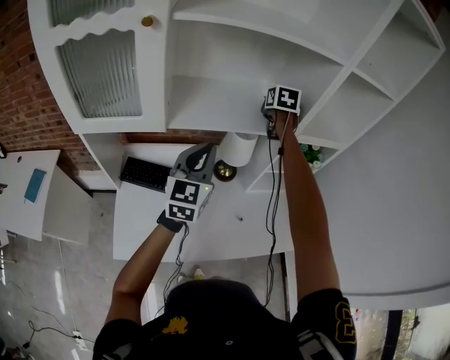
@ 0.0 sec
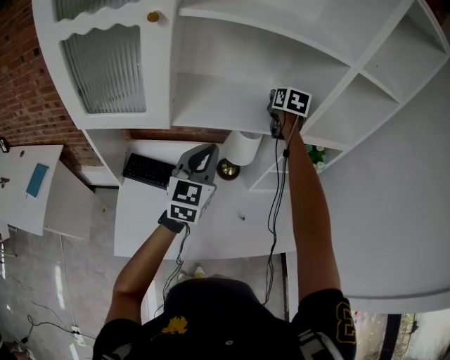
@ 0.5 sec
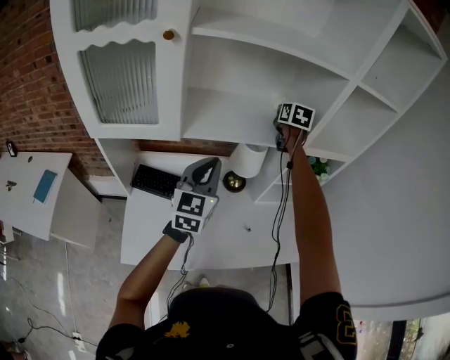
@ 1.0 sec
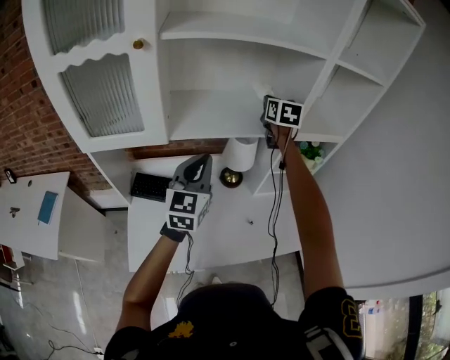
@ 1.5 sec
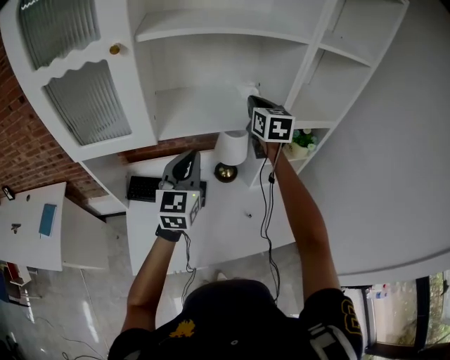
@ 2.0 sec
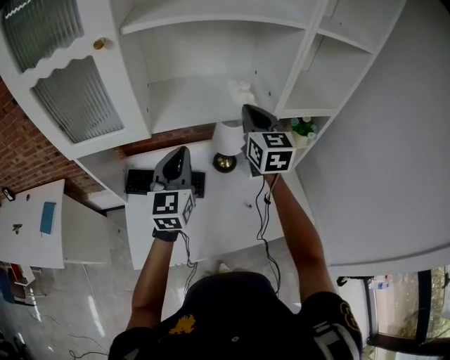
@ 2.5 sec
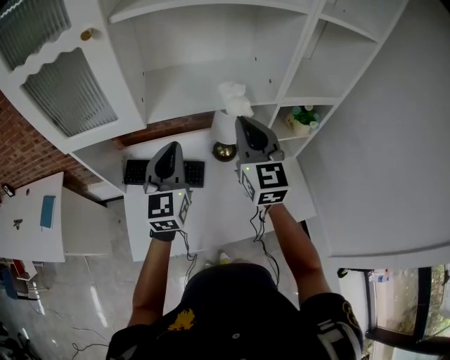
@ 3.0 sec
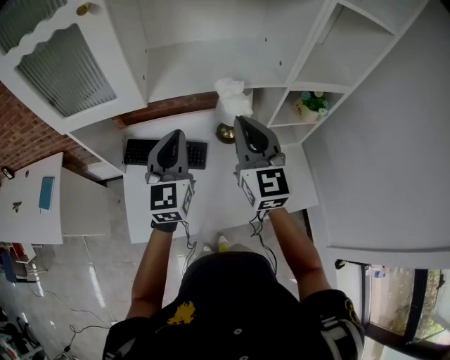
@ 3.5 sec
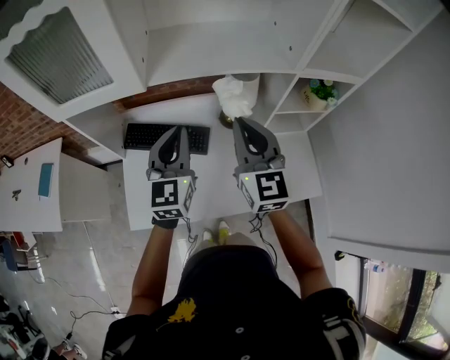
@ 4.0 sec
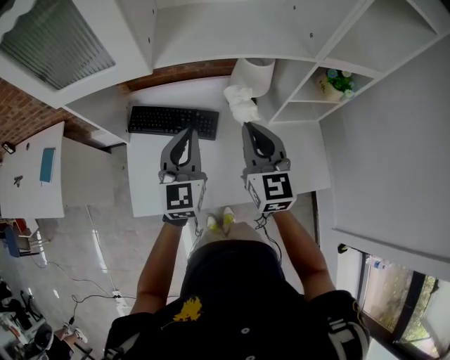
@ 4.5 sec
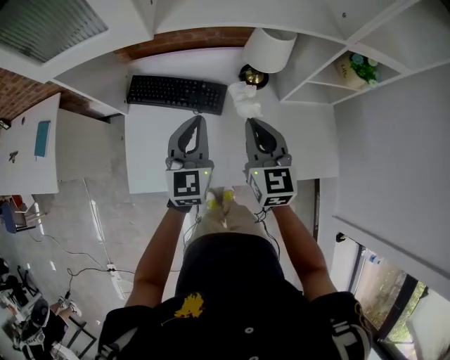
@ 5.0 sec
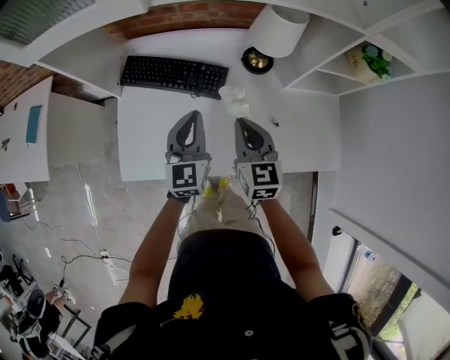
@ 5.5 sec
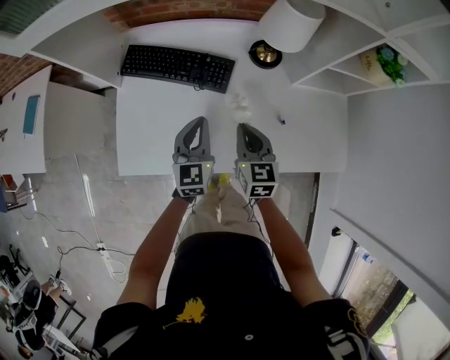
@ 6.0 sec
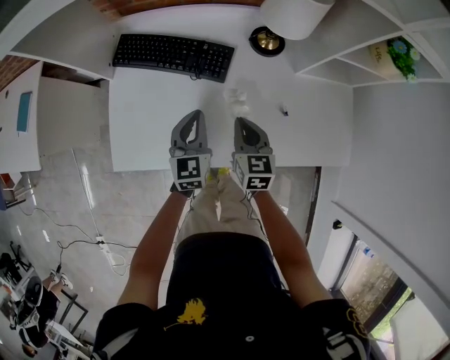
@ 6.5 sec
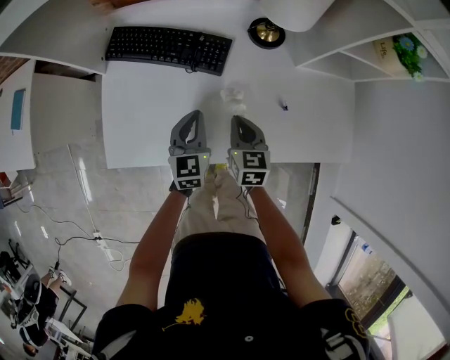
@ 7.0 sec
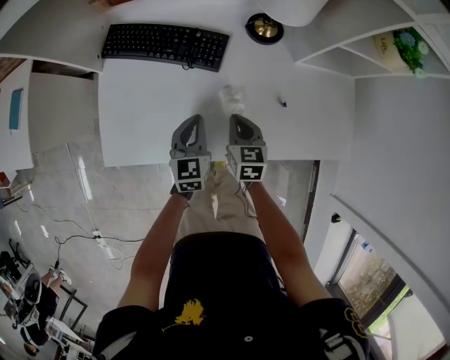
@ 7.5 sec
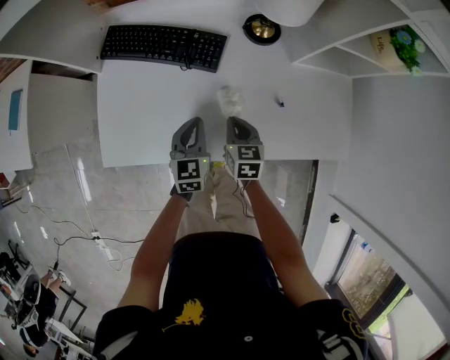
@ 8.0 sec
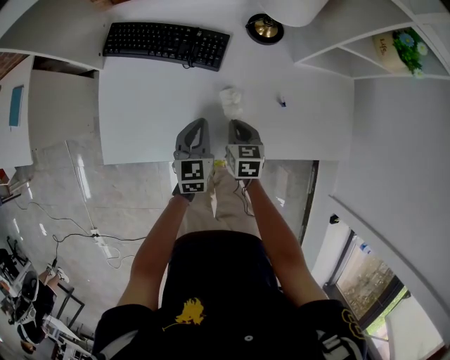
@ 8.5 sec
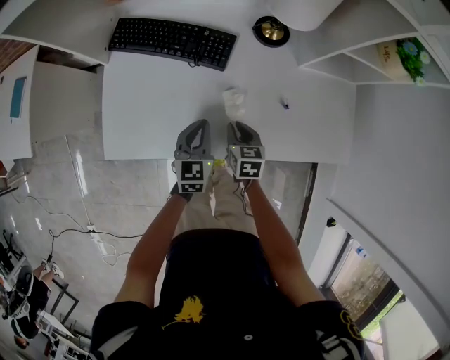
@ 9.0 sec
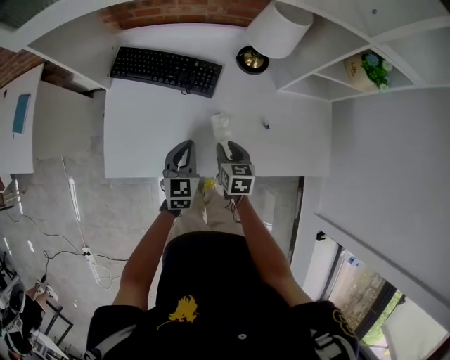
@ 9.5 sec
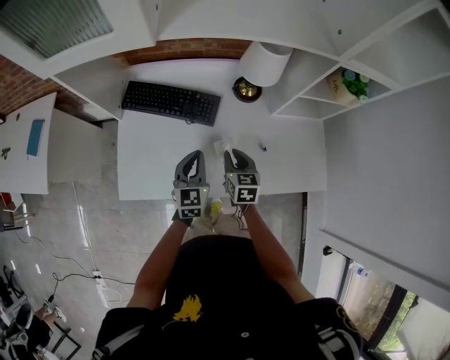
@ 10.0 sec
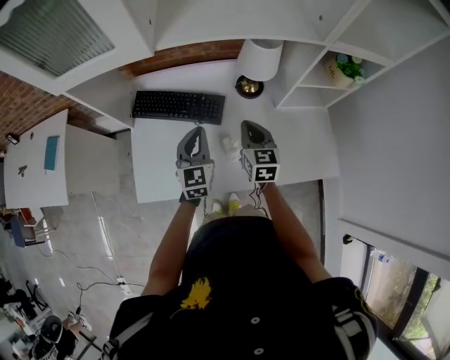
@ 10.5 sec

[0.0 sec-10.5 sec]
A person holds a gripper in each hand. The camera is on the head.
0.0 sec to 2.0 sec: The right gripper travels backward by some 10 cm, and turns by roughly 20 degrees.
2.0 sec to 4.0 sec: The left gripper travels downward by approximately 5 cm. Meanwhile the right gripper heads backward and downward, covering roughly 20 cm.
4.0 sec to 6.5 sec: The grippers both shift downward by approximately 35 cm. The right gripper angles its fingers downward, by some 30 degrees.
6.5 sec to 8.5 sec: The left gripper is displaced downward by roughly 5 cm, while the right gripper is displaced downward by approximately 10 cm.
8.5 sec to 10.5 sec: The grippers both shift upward by approximately 20 cm. The right gripper swivels approximately 20 degrees, and opens, then closes once more.

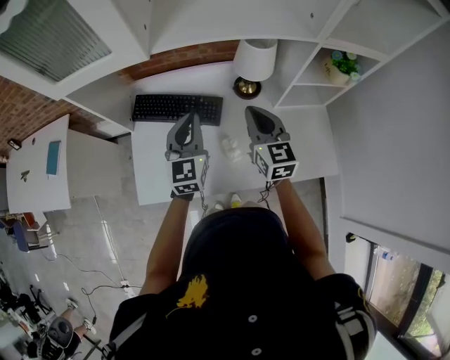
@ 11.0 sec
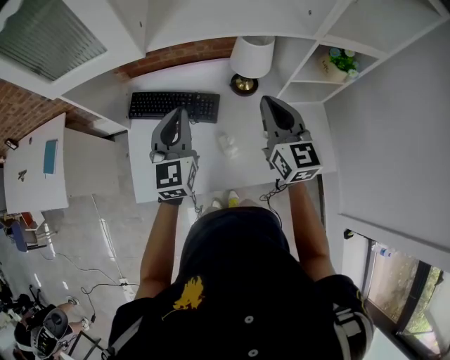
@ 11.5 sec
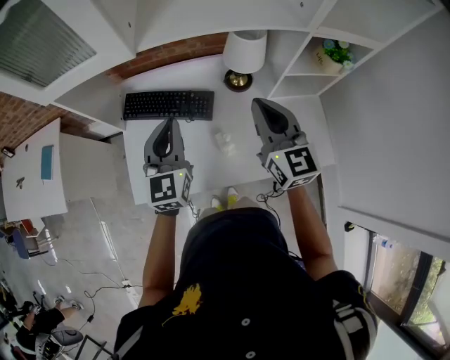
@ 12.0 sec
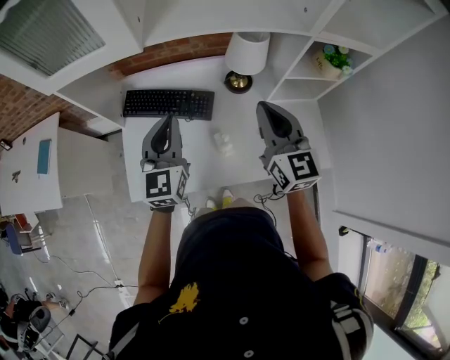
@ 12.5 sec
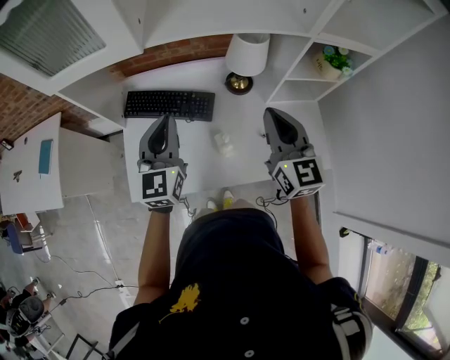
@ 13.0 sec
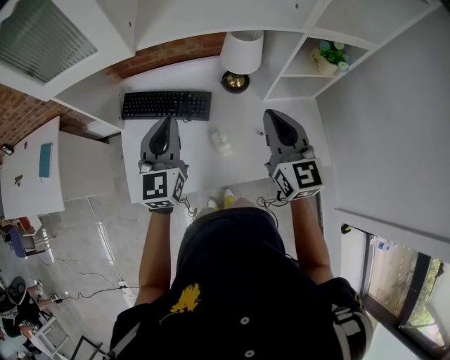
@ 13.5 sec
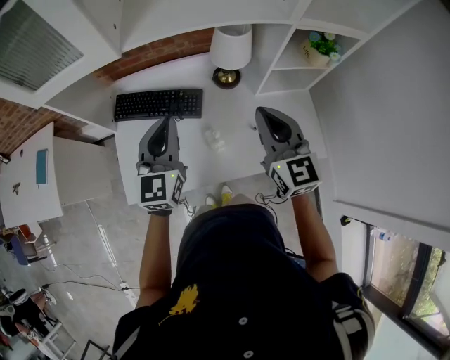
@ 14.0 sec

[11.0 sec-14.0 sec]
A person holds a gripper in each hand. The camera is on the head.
11.0 sec to 12.5 sec: The right gripper travels upward by some 10 cm; the left gripper moves some 5 cm.
12.5 sec to 14.0 sec: The grippers make only small movements.

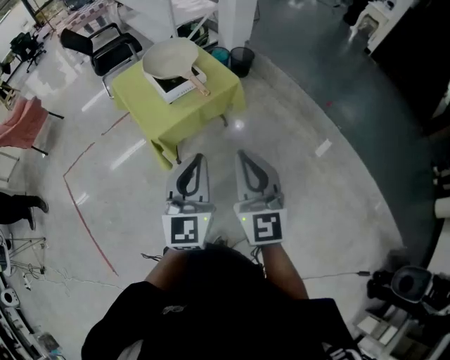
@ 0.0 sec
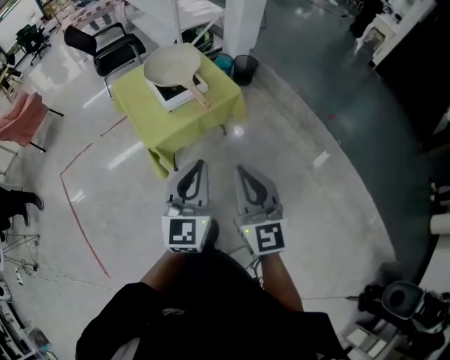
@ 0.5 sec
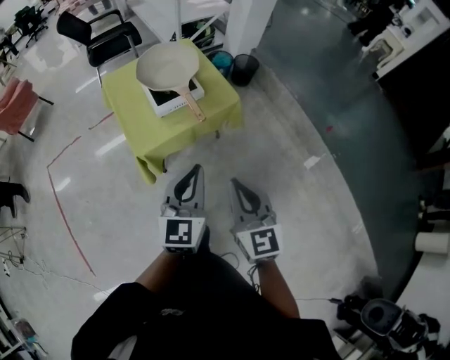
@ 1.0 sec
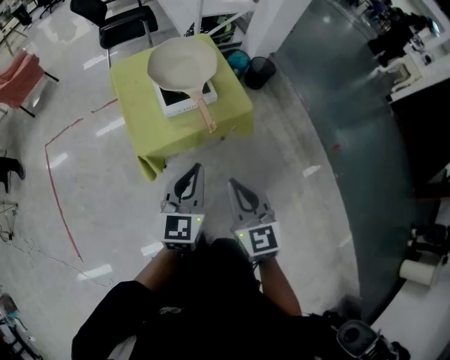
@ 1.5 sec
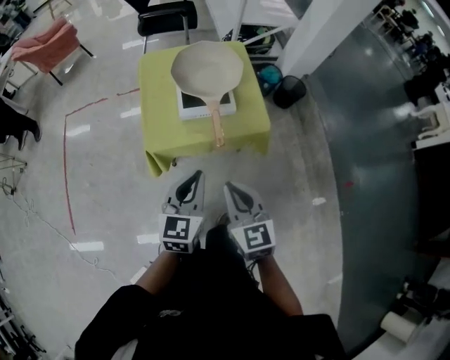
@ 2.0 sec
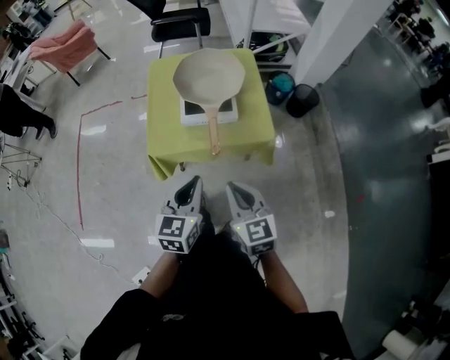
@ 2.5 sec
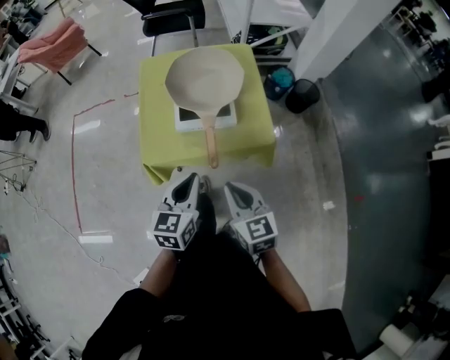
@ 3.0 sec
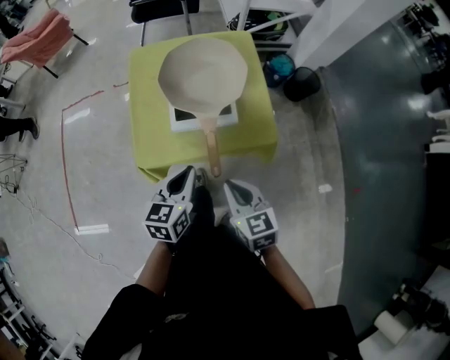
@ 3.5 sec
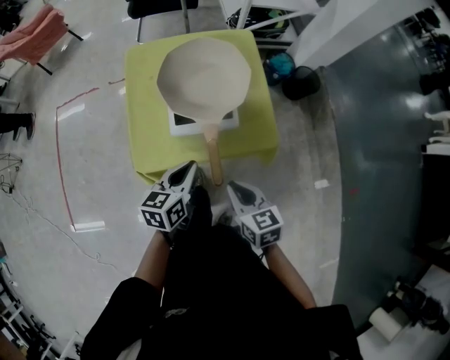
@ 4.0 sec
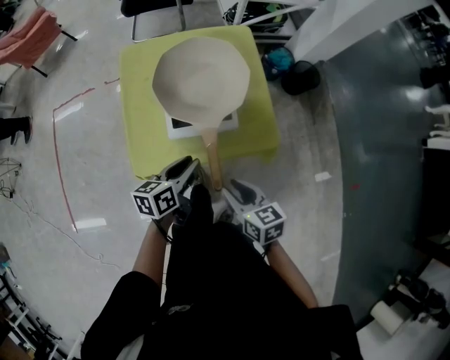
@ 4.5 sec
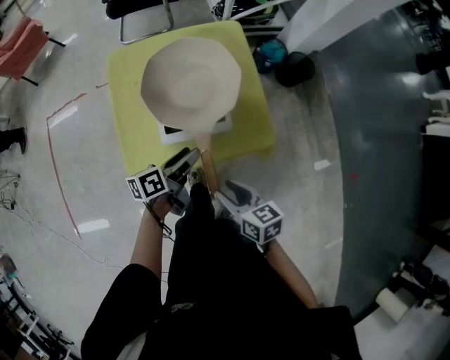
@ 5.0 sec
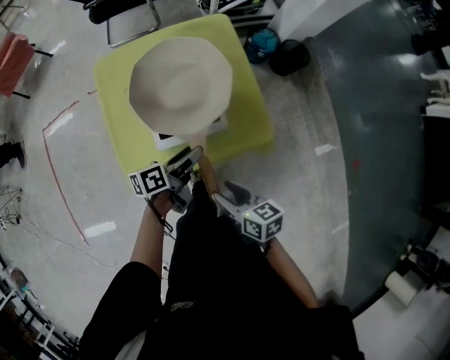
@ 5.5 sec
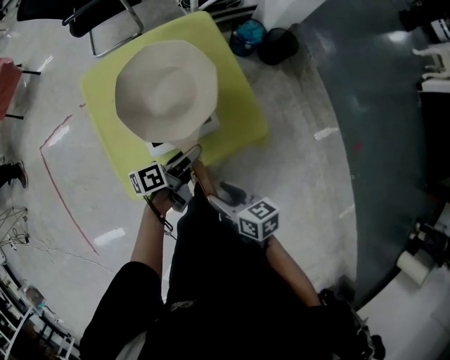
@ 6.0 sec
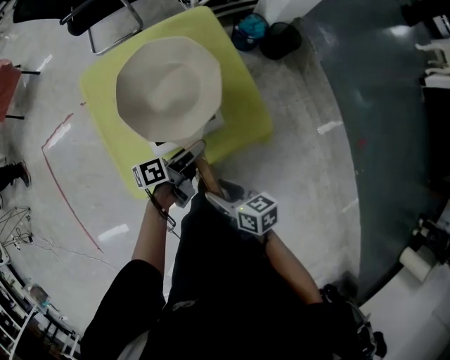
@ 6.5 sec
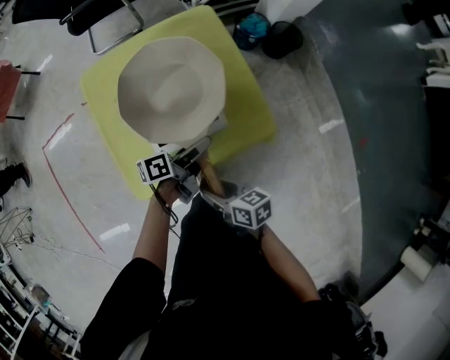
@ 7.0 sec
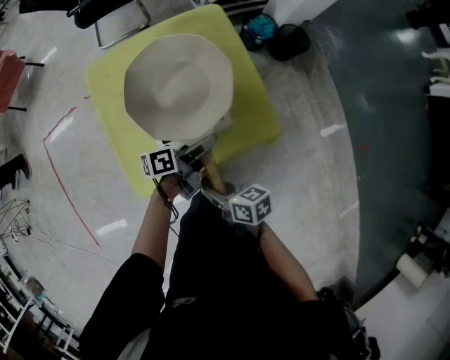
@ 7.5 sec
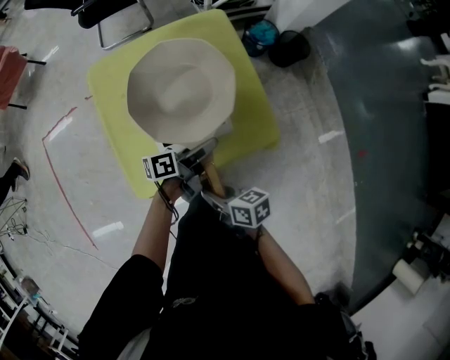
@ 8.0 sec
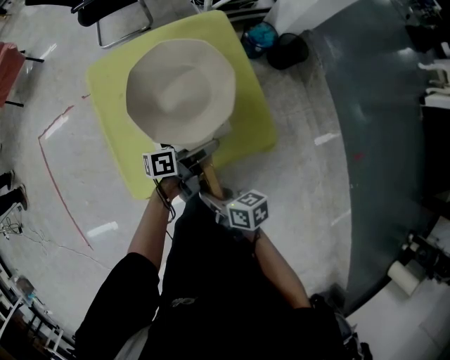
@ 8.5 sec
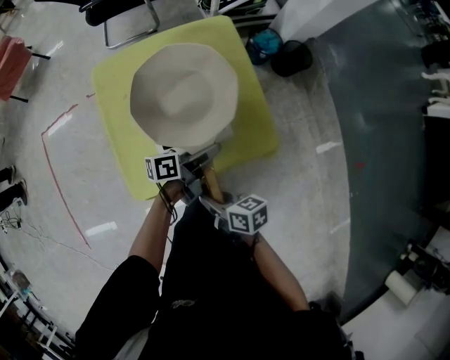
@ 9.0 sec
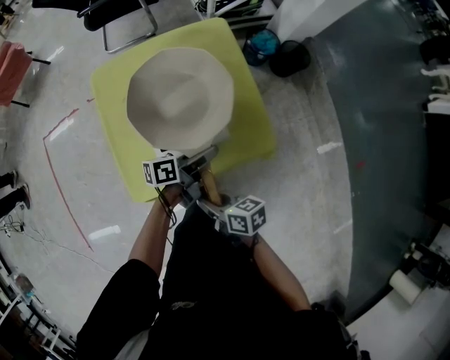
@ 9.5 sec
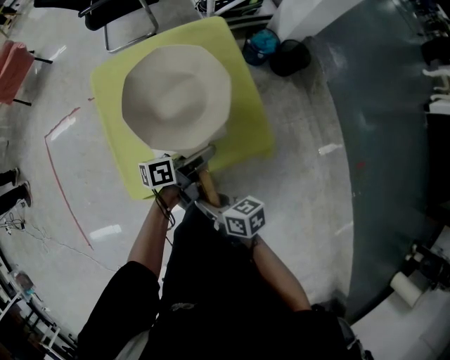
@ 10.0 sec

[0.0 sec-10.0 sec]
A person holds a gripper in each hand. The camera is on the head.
0.0 sec to 2.0 sec: The right gripper shifts by roughly 30 cm, and changes its angle by roughly 40 degrees. The left gripper ends up about 30 cm from where it was, and changes its angle by some 30 degrees.
2.0 sec to 4.0 sec: Both grippers move forward and downward, roughly 20 cm. The right gripper changes its angle by roughly 30 degrees, while the left gripper swivels roughly 30 degrees.
4.0 sec to 6.0 sec: The left gripper heads forward, downward and to the right, covering approximately 15 cm, swivels approximately 40 degrees, and opens its fingers; the right gripper ends up approximately 5 cm from where it was, turns by about 20 degrees, and opens its fingers.
6.0 sec to 8.0 sec: The right gripper is displaced to the left by roughly 5 cm, and closes.
8.0 sec to 10.0 sec: The grippers make only small movements.

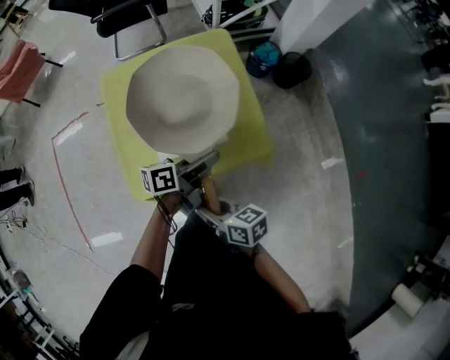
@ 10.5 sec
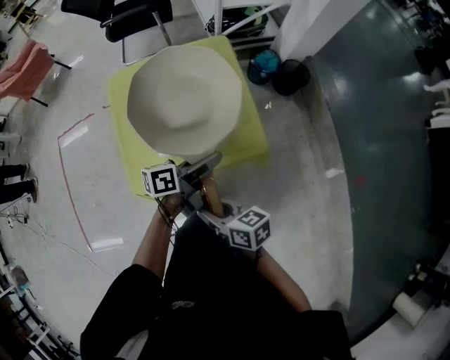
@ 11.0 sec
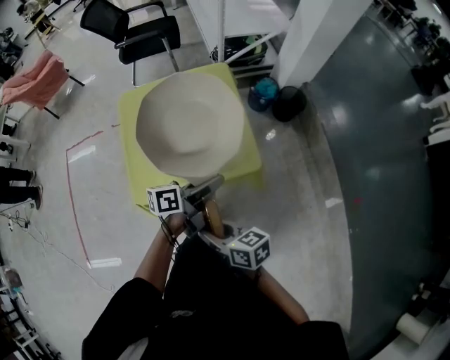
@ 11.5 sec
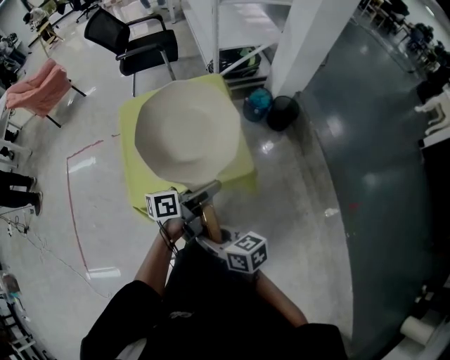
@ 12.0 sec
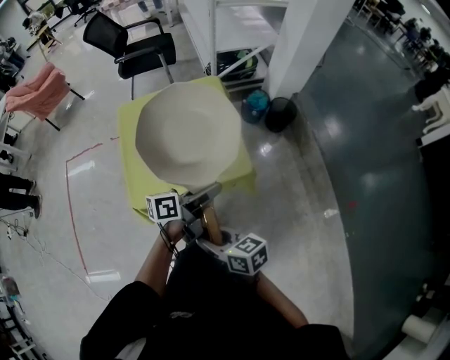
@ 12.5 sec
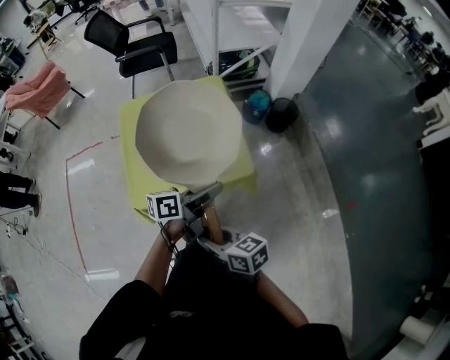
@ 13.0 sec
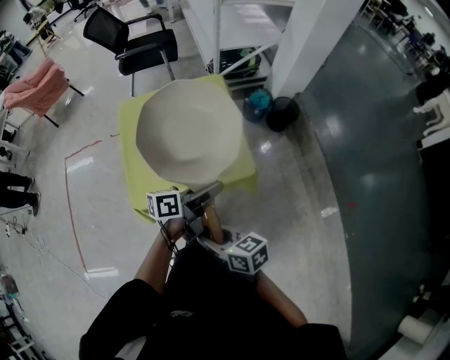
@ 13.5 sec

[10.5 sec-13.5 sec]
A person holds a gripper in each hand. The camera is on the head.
10.5 sec to 12.0 sec: Both grippers travel together backward, upward and to the right, about 15 cm.
12.0 sec to 13.5 sec: The grippers stay close to where they were, moving slightly.
